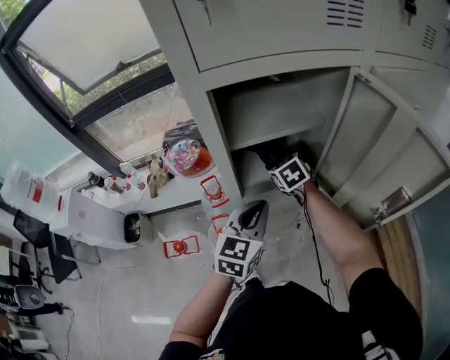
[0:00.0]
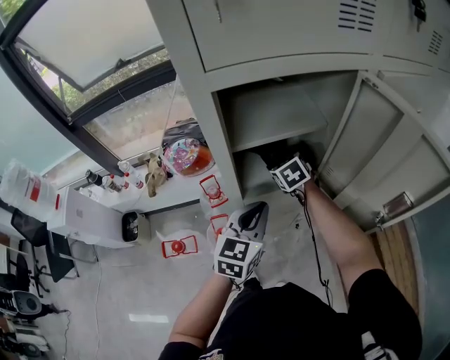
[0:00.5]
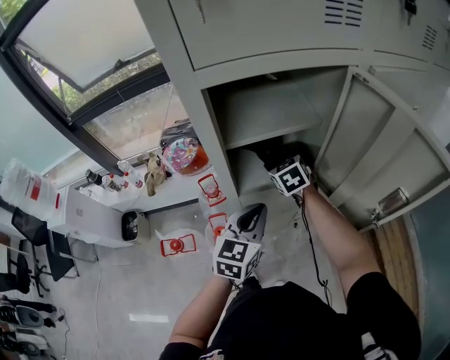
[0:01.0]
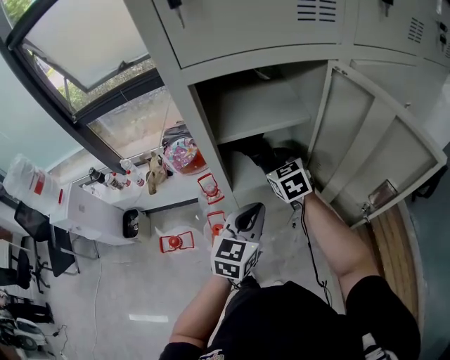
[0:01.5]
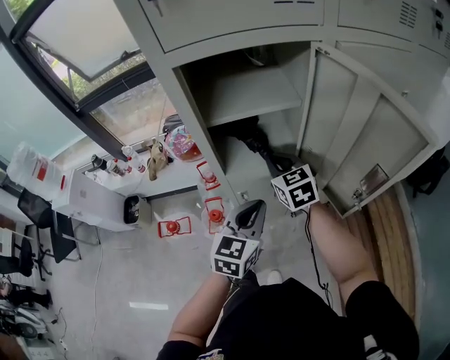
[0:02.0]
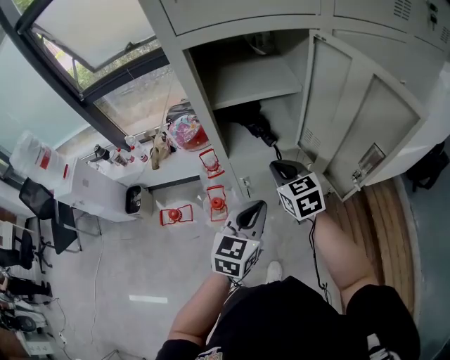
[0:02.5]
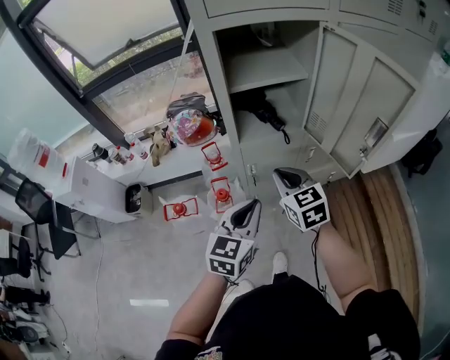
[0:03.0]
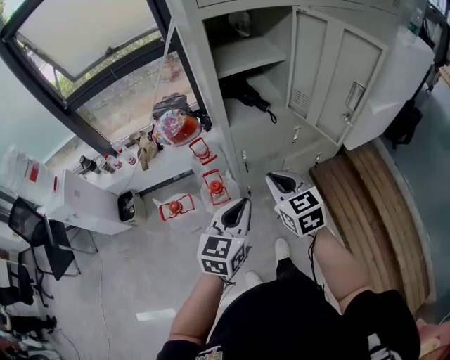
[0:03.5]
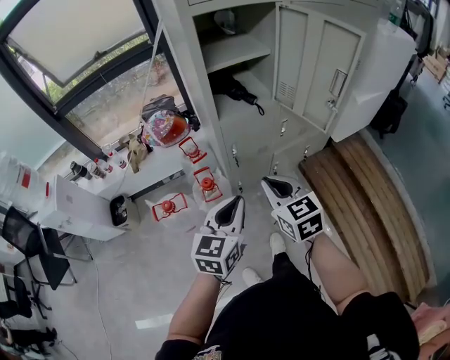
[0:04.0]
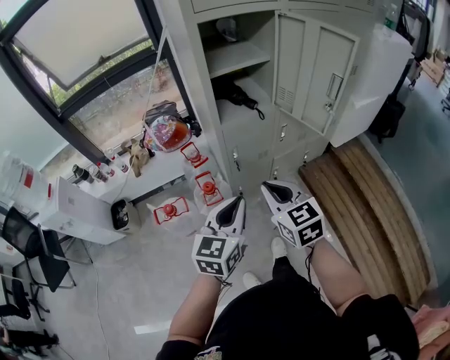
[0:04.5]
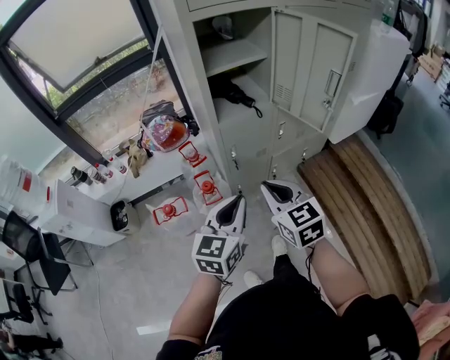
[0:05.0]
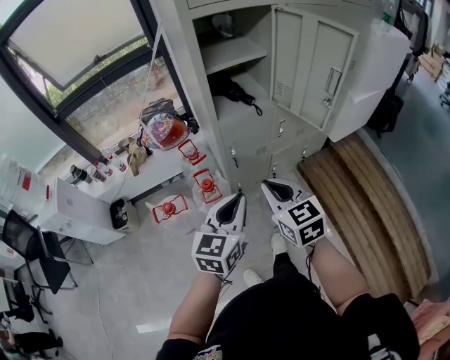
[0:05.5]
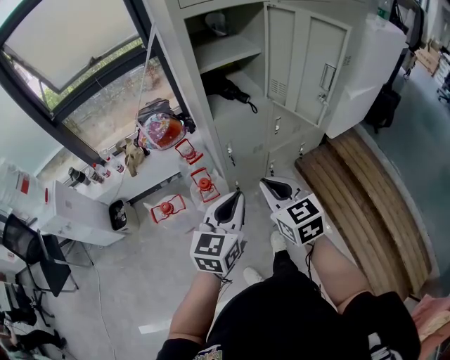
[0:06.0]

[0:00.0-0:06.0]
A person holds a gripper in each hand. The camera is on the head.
0:00.0 to 0:02.0: The right gripper goes approximately 10 cm backward and upward, and closes its fingers. The left gripper goes about 10 cm backward and to the right.
0:02.0 to 0:04.0: The left gripper goes some 25 cm backward and to the left; the right gripper shifts some 30 cm backward.
0:04.0 to 0:06.0: There are only small adjustments of the grippers.

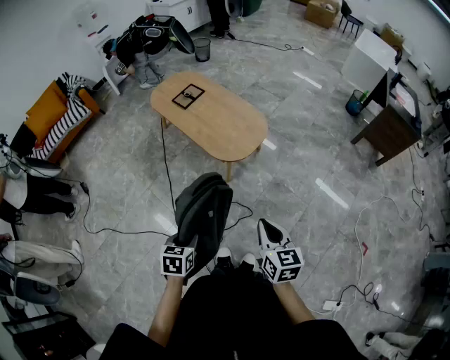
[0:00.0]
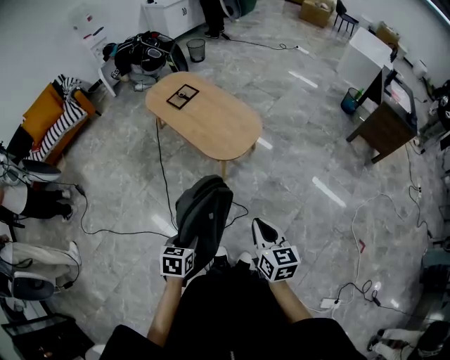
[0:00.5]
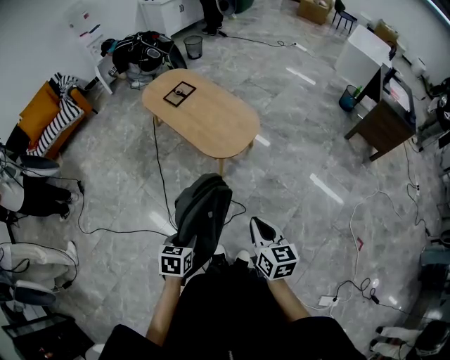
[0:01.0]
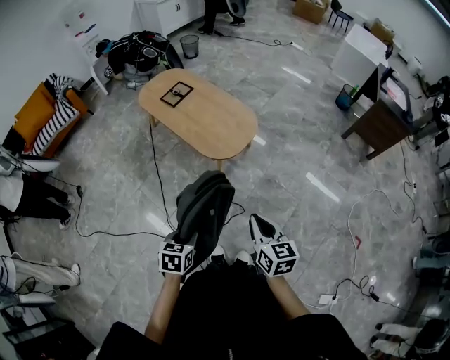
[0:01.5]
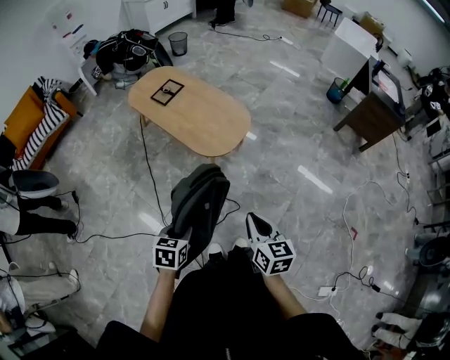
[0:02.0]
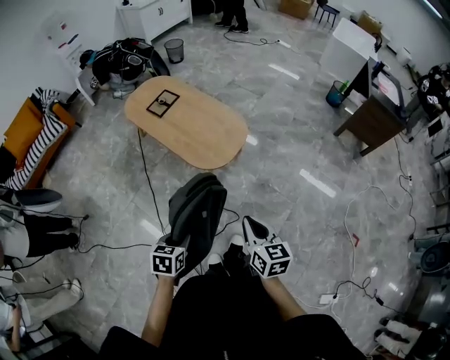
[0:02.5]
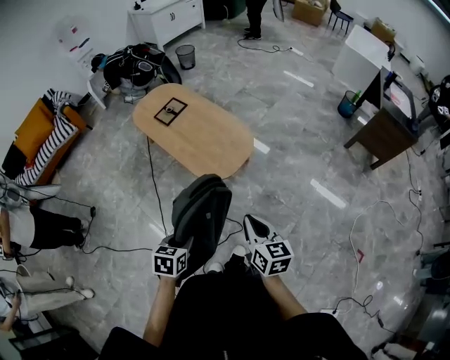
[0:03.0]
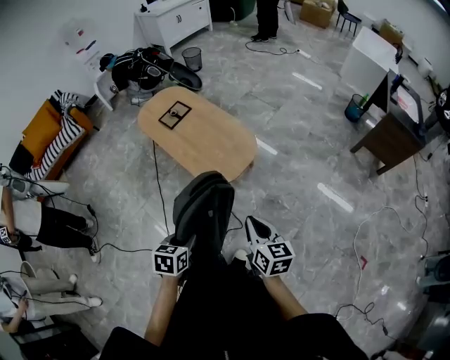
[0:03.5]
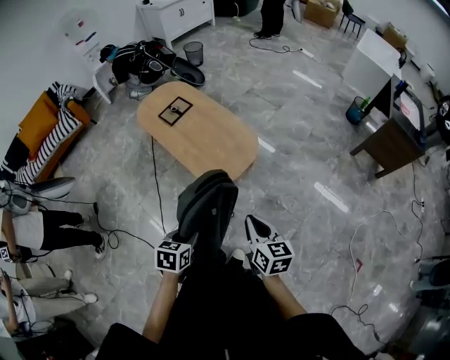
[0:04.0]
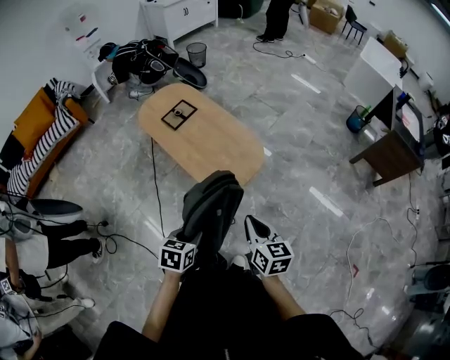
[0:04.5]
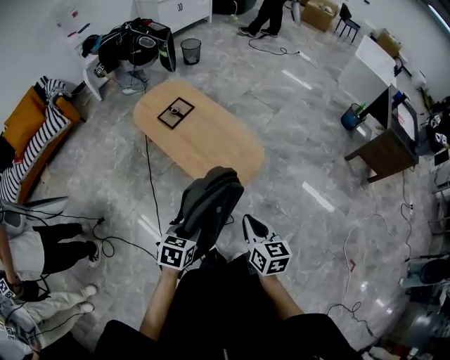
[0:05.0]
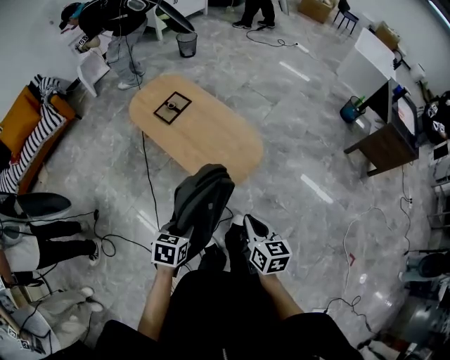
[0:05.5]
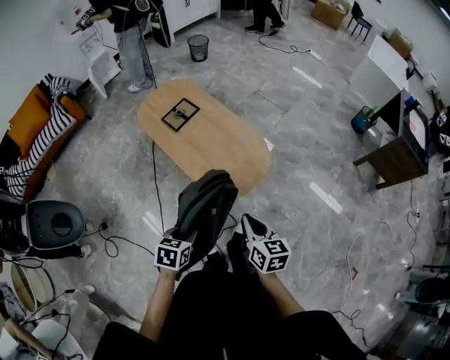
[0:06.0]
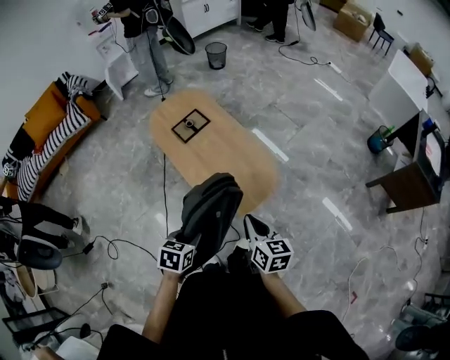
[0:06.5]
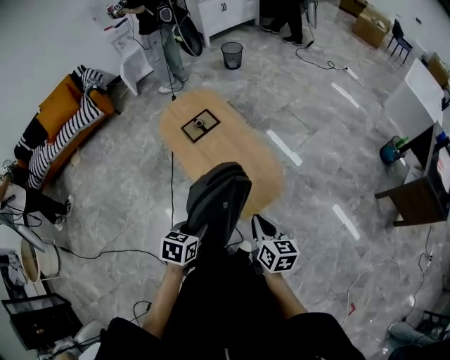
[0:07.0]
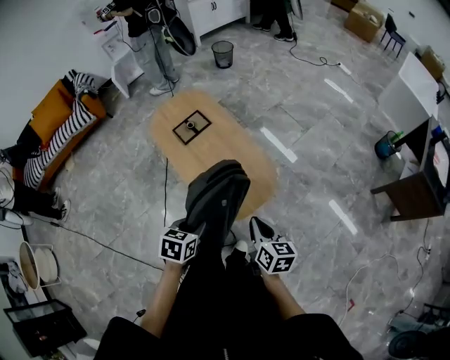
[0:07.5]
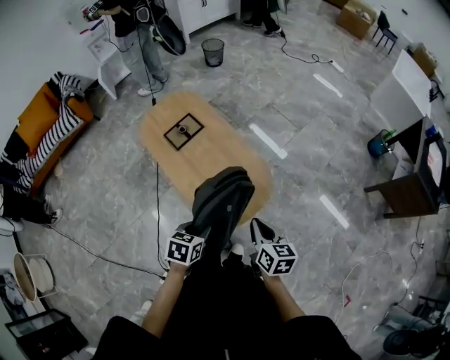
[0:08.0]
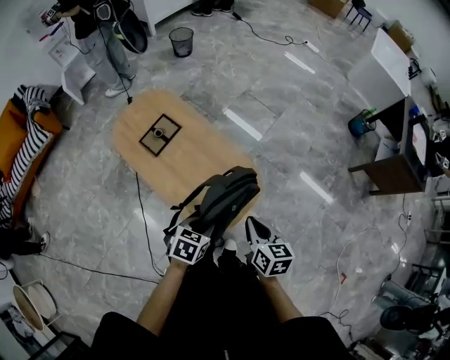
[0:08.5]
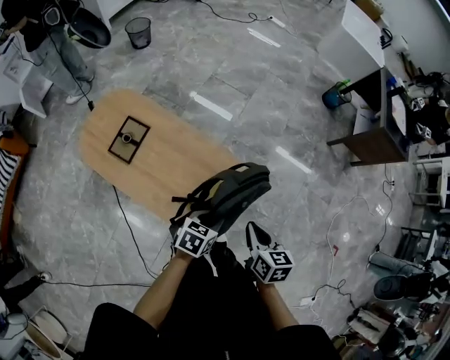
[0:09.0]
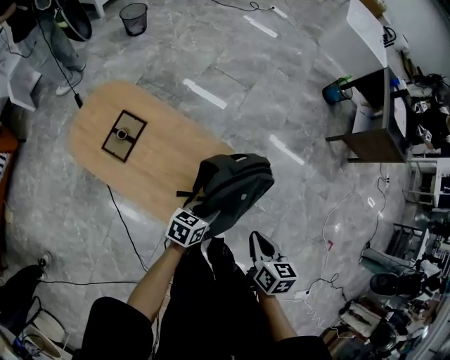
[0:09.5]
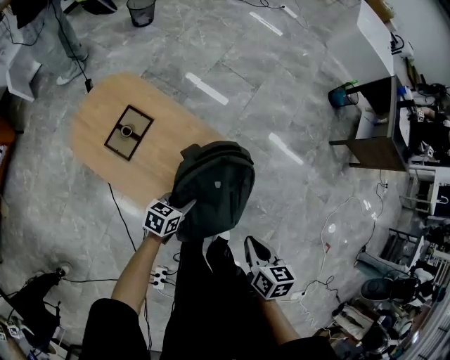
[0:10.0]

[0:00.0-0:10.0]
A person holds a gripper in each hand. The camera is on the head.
0:00.0 to 0:02.0: The grippers stay close to where they were, moving slightly.
0:02.0 to 0:04.0: The left gripper is displaced forward and to the right by about 15 cm; the right gripper is displaced forward by approximately 15 cm.
0:04.0 to 0:06.0: Both grippers travel together forward and to the left, about 15 cm.
0:06.0 to 0:08.0: Both grippers travel together forward and to the right, about 20 cm.
0:08.0 to 0:10.0: The left gripper moves about 30 cm, and changes its angle by approximately 30 degrees, while the right gripper shifts by about 10 cm, and turns by approximately 30 degrees.

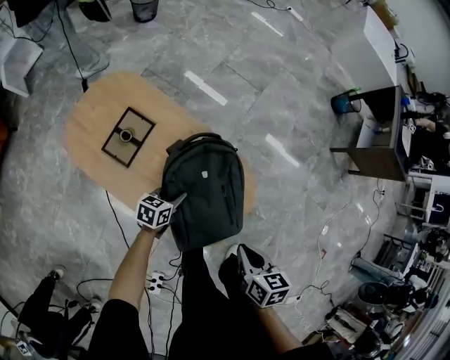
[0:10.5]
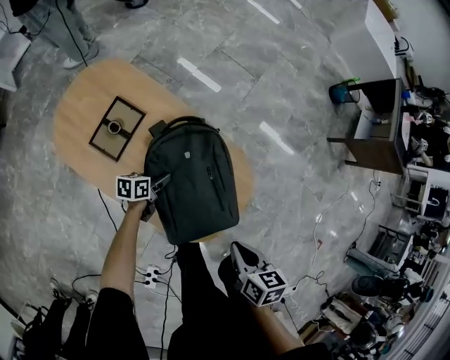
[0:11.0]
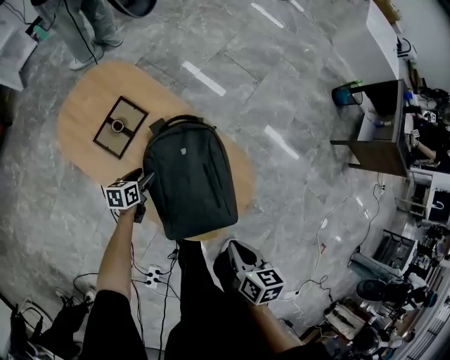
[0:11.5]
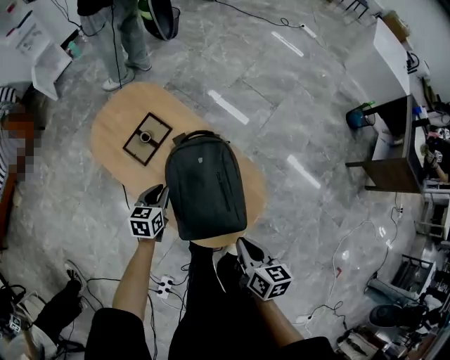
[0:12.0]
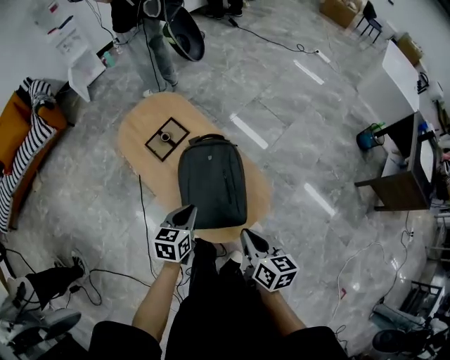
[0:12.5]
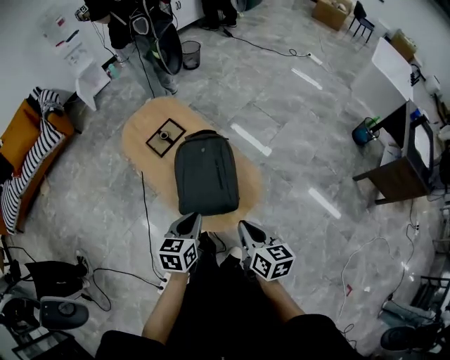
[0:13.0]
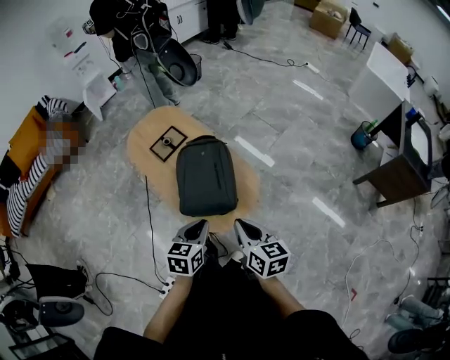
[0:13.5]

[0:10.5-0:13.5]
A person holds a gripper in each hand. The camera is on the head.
0:10.5 to 0:12.0: The left gripper moves to the left and upward, some 10 cm, swivels roughly 30 degrees, and opens, then closes again.
0:12.0 to 0:13.5: The left gripper shifts about 40 cm backward, upward and to the right; the right gripper goes approximately 20 cm backward, upward and to the right, and swivels some 20 degrees.

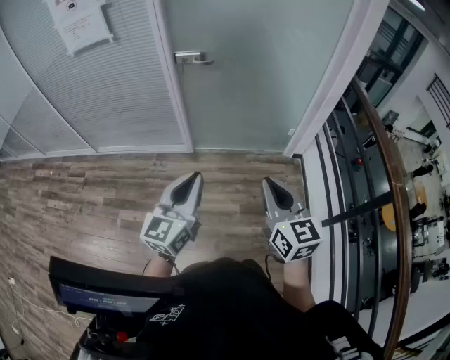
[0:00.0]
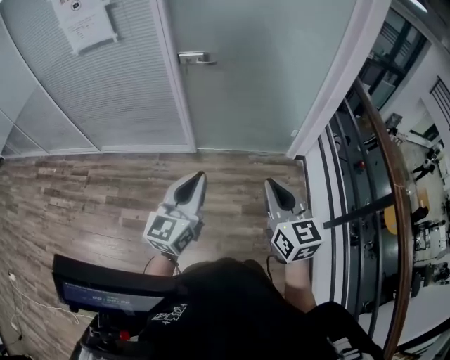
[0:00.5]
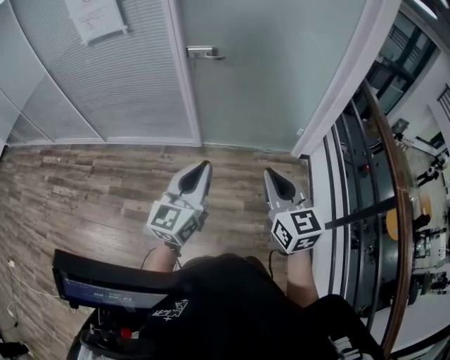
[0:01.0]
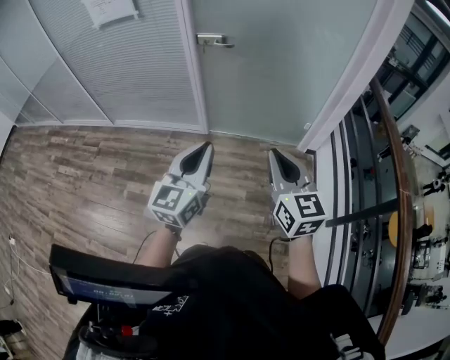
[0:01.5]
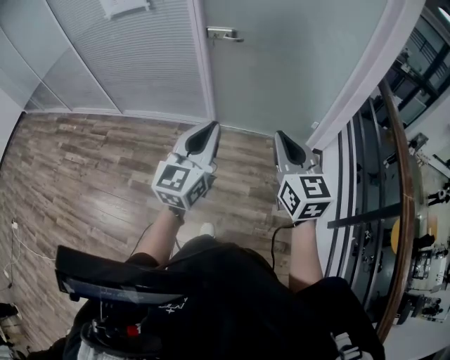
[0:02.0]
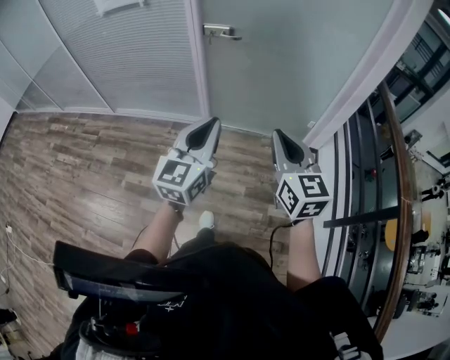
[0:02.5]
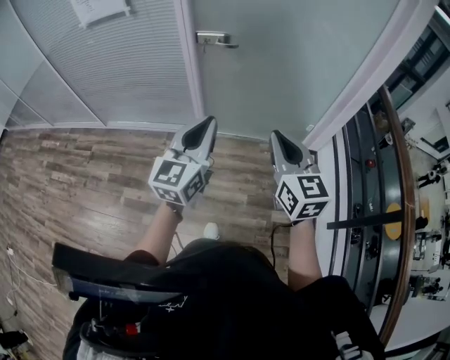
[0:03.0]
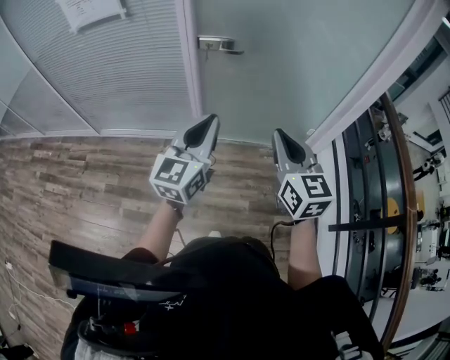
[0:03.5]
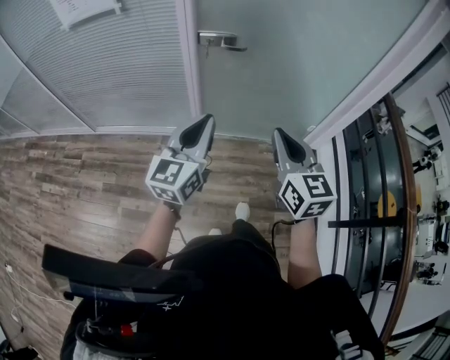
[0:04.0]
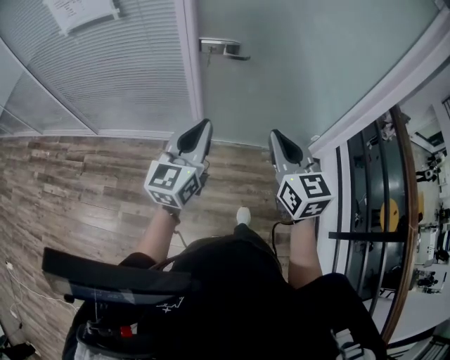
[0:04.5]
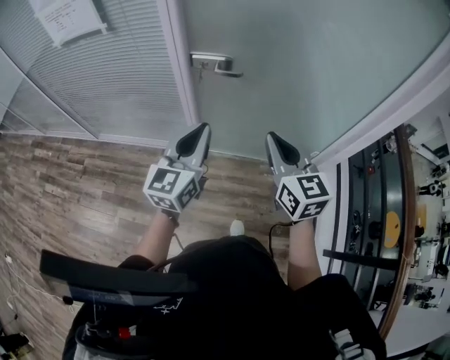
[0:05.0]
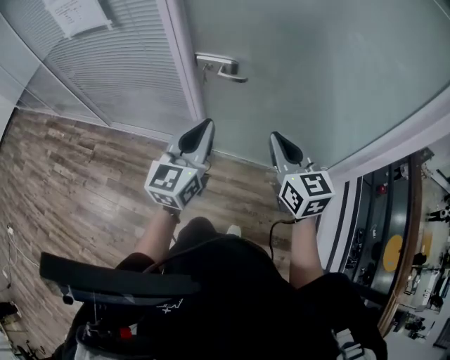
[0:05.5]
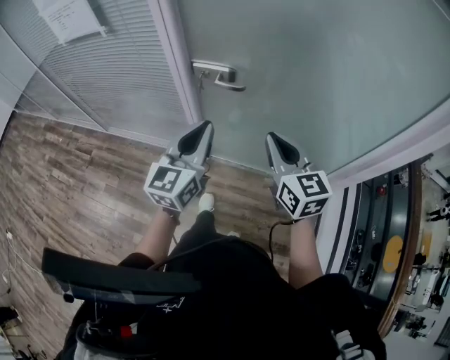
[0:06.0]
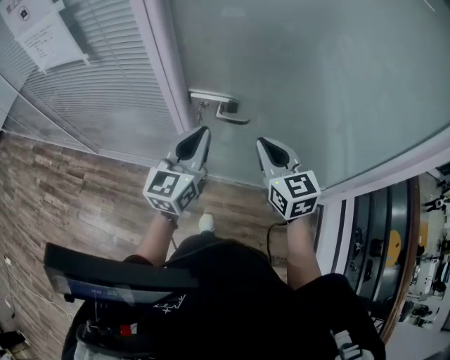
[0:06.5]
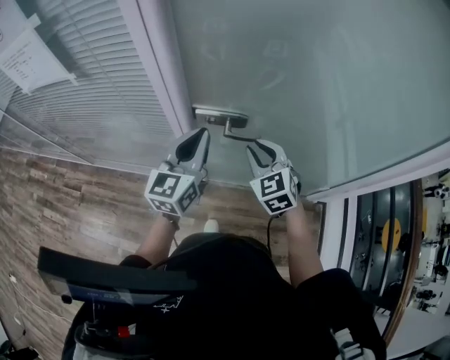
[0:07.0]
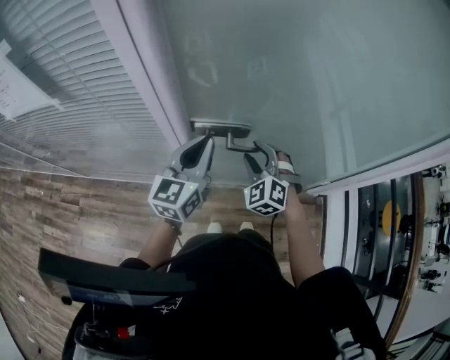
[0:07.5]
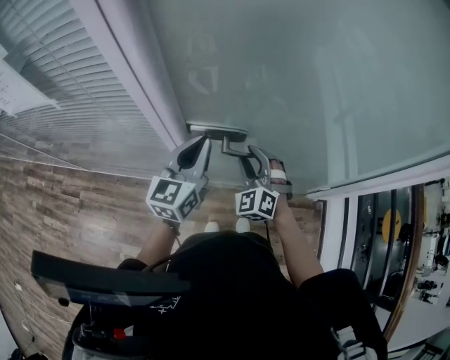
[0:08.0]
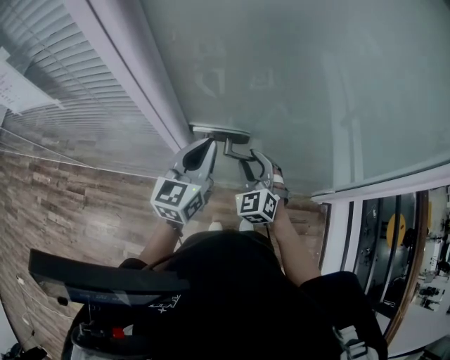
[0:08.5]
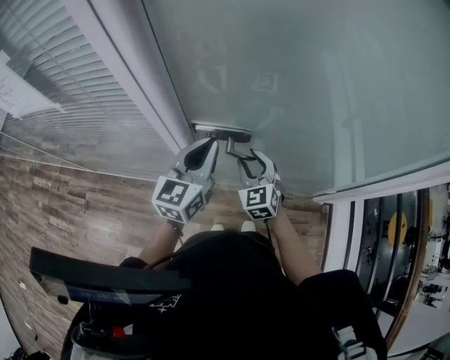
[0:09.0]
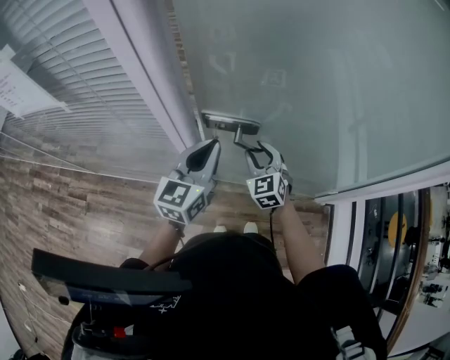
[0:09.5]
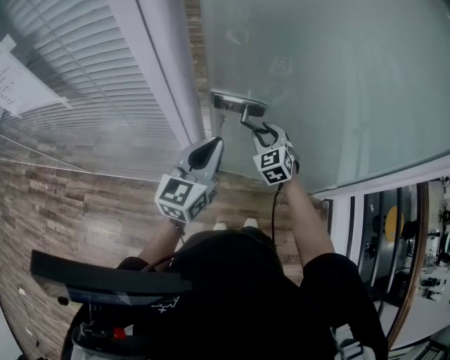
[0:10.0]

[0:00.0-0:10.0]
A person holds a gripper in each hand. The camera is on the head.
0:00.0 to 0:02.0: The left gripper moves some 5 cm.
0:02.0 to 0:04.0: The two grippers go roughly 20 cm forward and to the left.
0:04.0 to 0:06.0: The grippers both shift forward by about 20 cm.
0:06.0 to 0:08.0: The left gripper is displaced forward by approximately 20 cm. Meanwhile the right gripper is displaced forward, downward and to the left by some 25 cm, twists about 50 degrees counterclockwise, seen from behind, and opens.
0:08.0 to 0:10.0: The right gripper goes about 10 cm forward.
